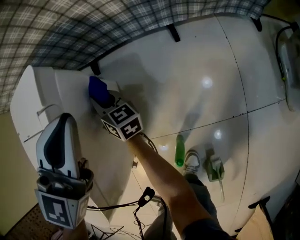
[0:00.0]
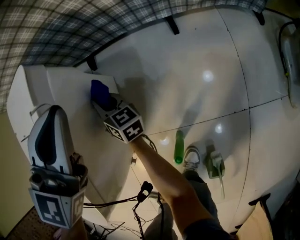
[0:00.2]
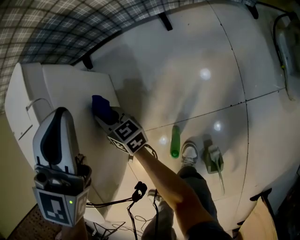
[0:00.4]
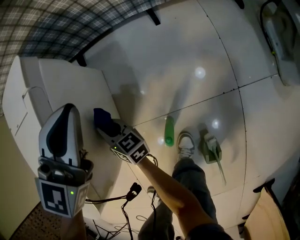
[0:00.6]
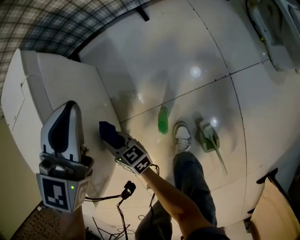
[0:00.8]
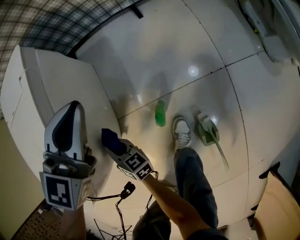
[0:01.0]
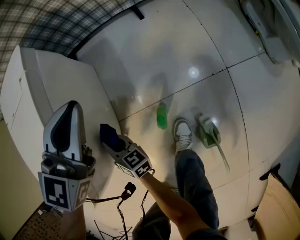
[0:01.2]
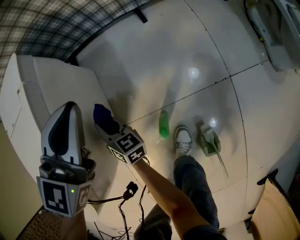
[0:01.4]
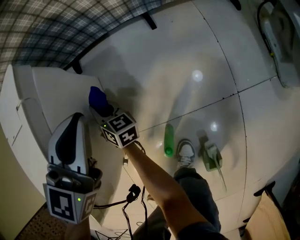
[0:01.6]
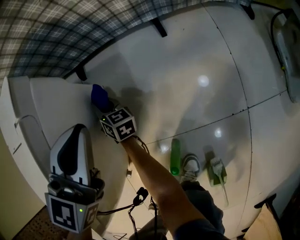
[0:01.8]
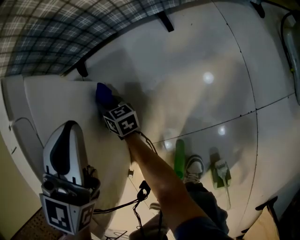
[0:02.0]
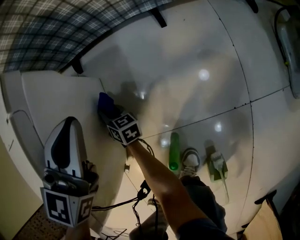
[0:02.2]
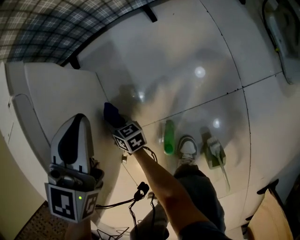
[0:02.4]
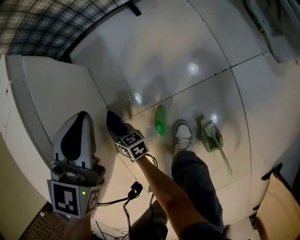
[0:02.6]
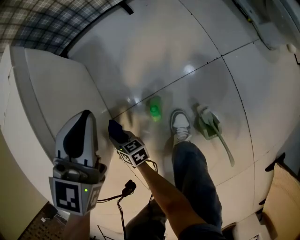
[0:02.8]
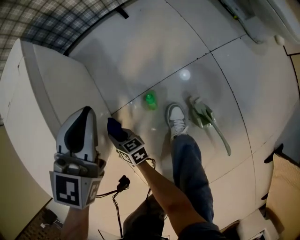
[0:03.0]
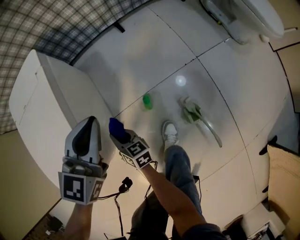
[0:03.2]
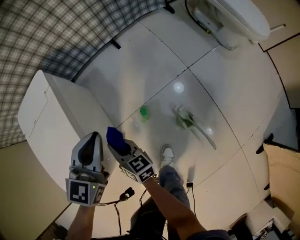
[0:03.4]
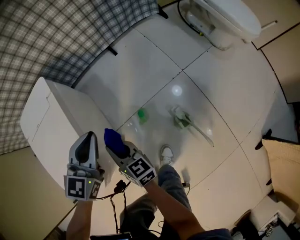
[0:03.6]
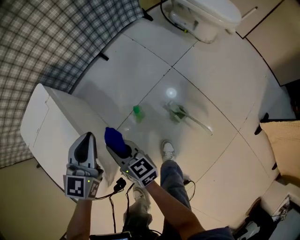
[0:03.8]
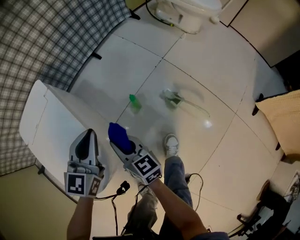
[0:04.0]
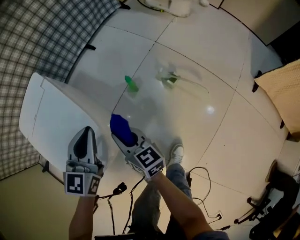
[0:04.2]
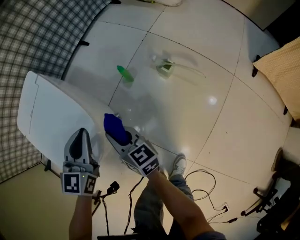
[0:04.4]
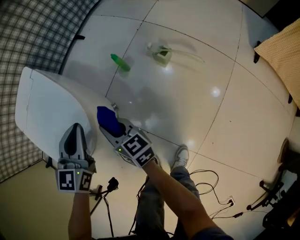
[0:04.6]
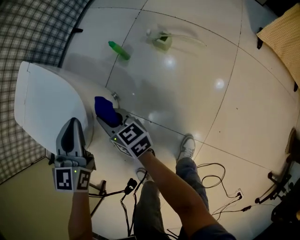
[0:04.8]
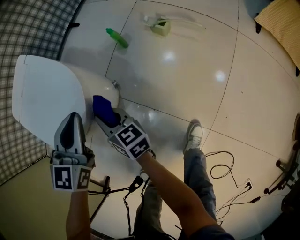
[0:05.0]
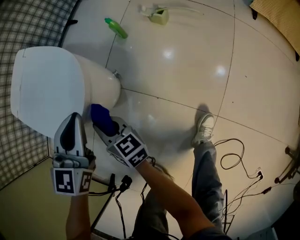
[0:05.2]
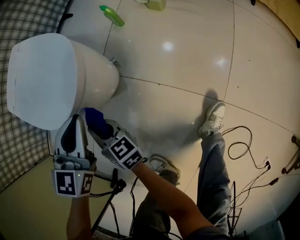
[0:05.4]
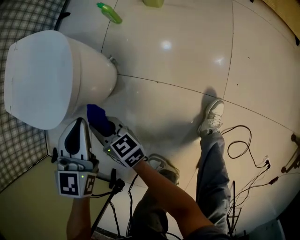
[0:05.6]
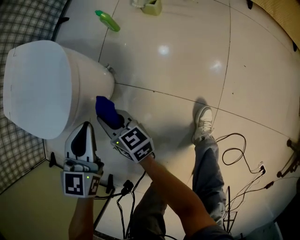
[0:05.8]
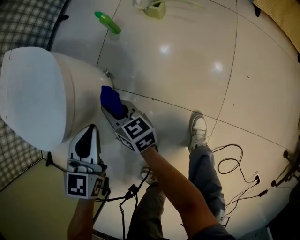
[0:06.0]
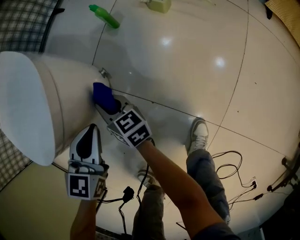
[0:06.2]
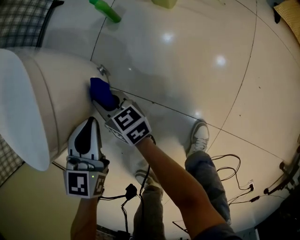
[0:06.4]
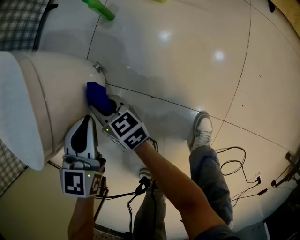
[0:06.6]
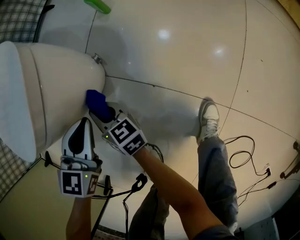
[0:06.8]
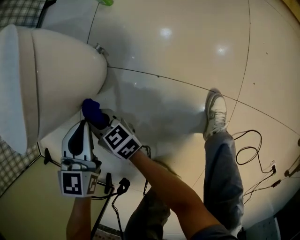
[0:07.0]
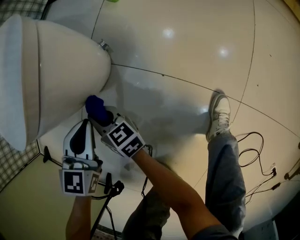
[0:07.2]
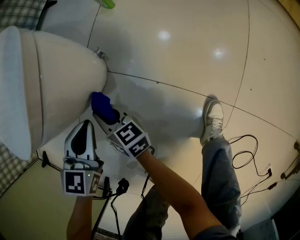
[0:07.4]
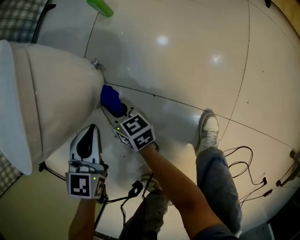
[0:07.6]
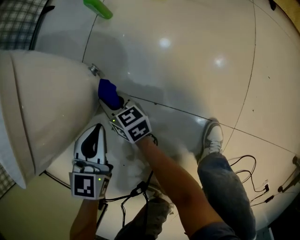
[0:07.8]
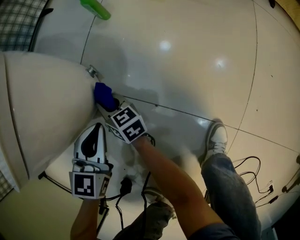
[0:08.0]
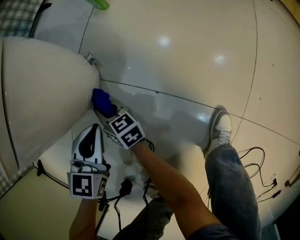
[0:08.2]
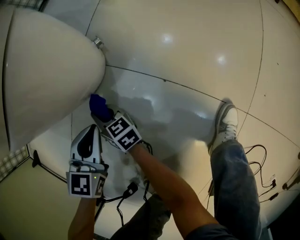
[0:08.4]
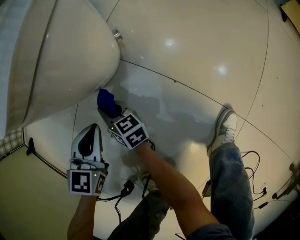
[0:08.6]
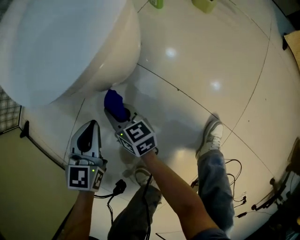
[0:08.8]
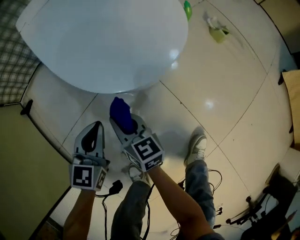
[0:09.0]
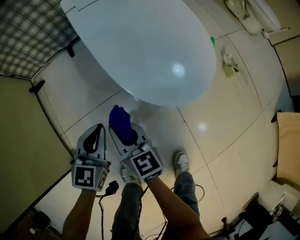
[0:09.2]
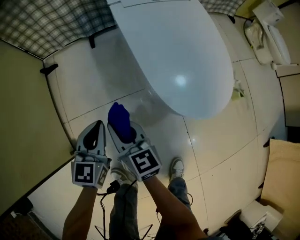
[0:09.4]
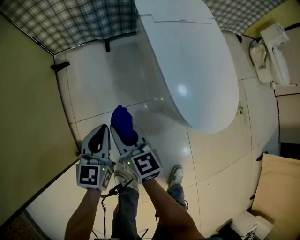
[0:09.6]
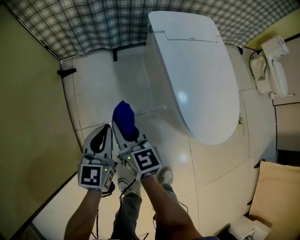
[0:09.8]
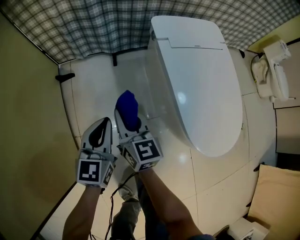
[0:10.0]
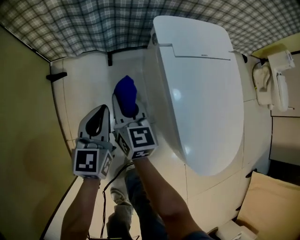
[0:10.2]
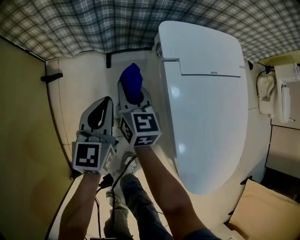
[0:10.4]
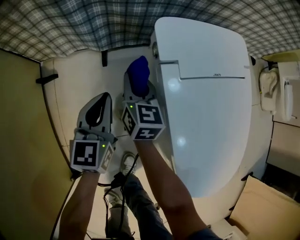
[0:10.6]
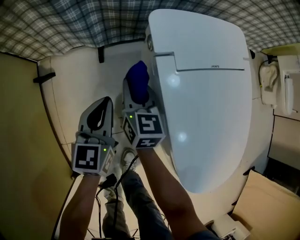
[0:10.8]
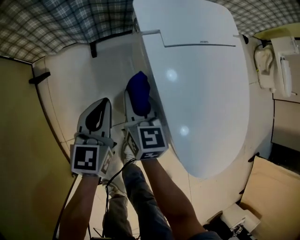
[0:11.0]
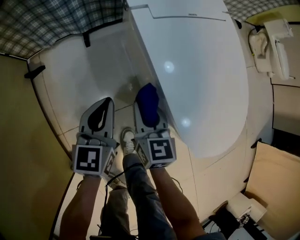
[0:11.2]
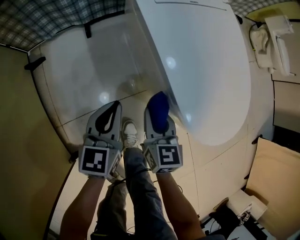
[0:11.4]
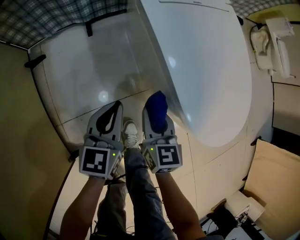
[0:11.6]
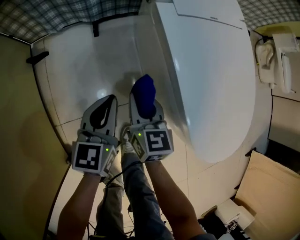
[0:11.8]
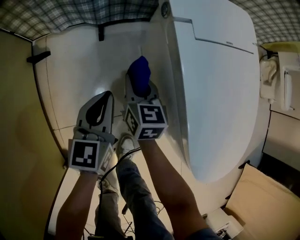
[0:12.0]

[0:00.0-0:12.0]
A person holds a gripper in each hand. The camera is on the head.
0.0 to 1.6 s: The right gripper travels downward by about 5 cm, and moves approximately 35 cm backward and comes back. Meanwhile the left gripper moves backward and downward, approximately 10 cm.
1.6 to 3.0 s: The left gripper moves backward, about 20 cm. The right gripper moves backward, approximately 30 cm.
3.0 to 4.4 s: The right gripper travels upward by approximately 30 cm, and turns by approximately 40 degrees. Meanwhile the left gripper ends up some 30 cm from where it was.
4.4 to 6.0 s: The left gripper travels backward and downward by roughly 25 cm, and changes its angle by about 20 degrees, while the right gripper shifts some 20 cm downward and backward, and goes to the left and returns, roughly 20 cm each way.
6.0 to 7.6 s: The two grippers go roughly 15 cm downward.
7.6 to 9.0 s: The left gripper is displaced to the left and upward by roughly 20 cm, and rotates roughly 30 degrees. Meanwhile the right gripper shifts some 25 cm upward, to the left and backward, and rotates approximately 30 degrees.
9.0 to 10.4 s: Both grippers are carried forward and to the left, approximately 50 cm. The left gripper rotates roughly 40 degrees.
10.4 to 12.0 s: The right gripper moves forward and backward over about 30 cm, changing direction 2 times, while the left gripper goes about 5 cm downward, and reaches about 15 cm backward, then returns.

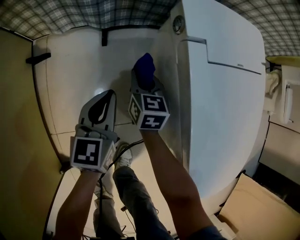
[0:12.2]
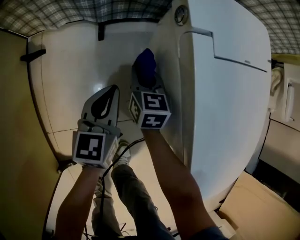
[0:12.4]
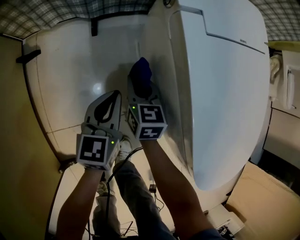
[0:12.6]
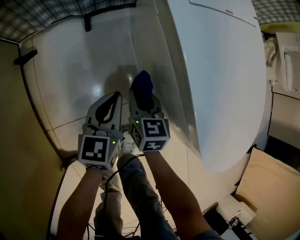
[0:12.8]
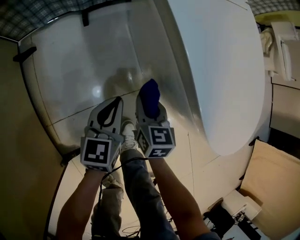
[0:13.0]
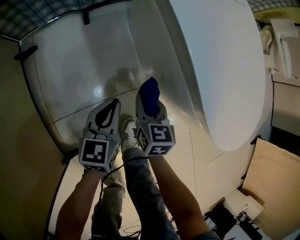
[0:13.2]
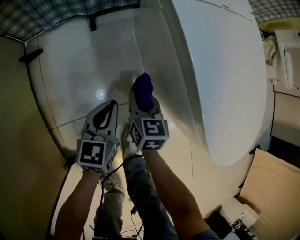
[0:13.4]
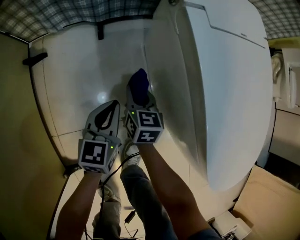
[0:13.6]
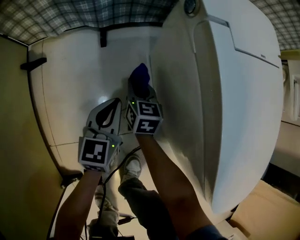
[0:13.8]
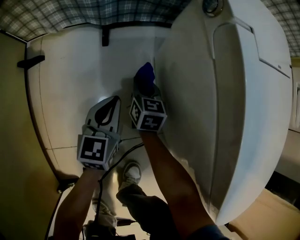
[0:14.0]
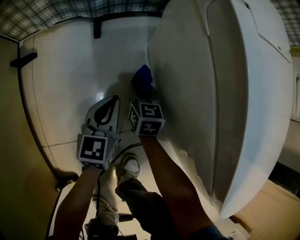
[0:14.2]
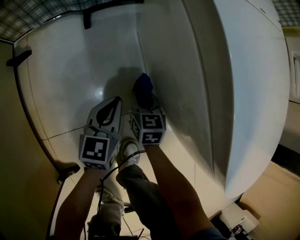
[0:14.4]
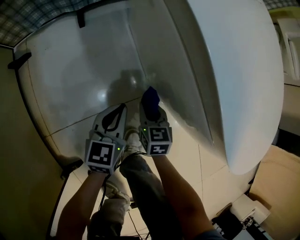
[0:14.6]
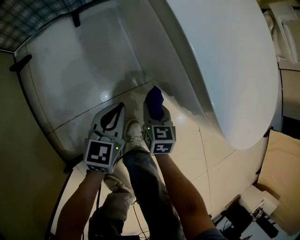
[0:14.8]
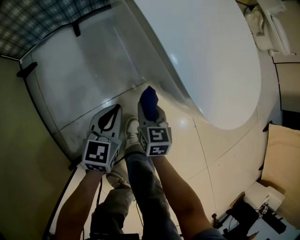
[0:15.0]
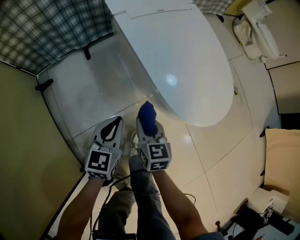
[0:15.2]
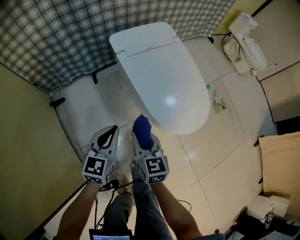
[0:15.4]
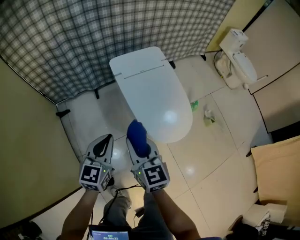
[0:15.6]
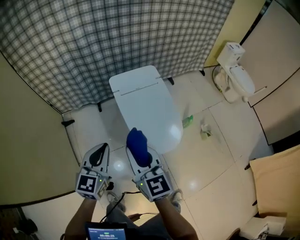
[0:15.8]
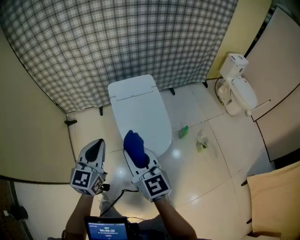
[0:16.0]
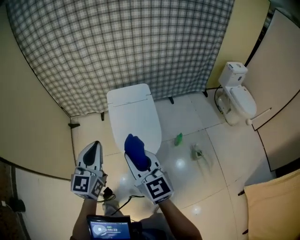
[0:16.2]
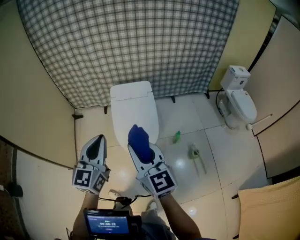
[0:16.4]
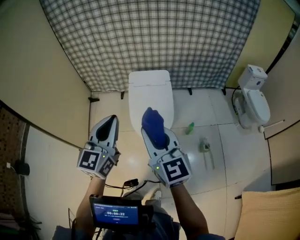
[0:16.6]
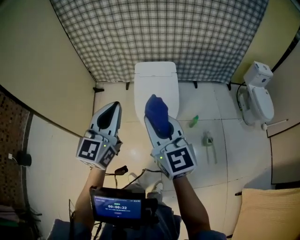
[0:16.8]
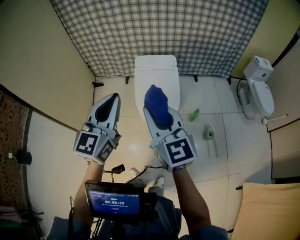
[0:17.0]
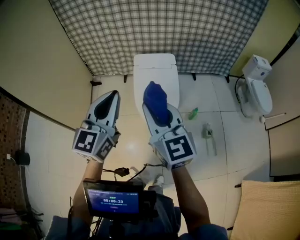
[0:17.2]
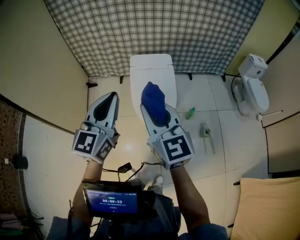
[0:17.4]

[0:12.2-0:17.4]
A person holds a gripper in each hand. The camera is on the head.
12.2 to 14.0 s: Both grippers move downward, roughly 15 cm. The left gripper moves some 20 cm backward and comes back. Meanwhile the right gripper moves roughly 25 cm backward and comes back.
14.0 to 15.6 s: Both grippers travel together upward and backward, roughly 60 cm. The right gripper swivels about 20 degrees. The left gripper swivels roughly 20 degrees.
15.6 to 17.4 s: The right gripper shifts by roughly 40 cm, and turns by some 30 degrees. The left gripper is displaced upward by roughly 35 cm, and changes its angle by approximately 30 degrees.

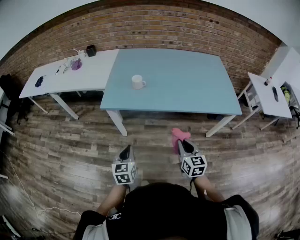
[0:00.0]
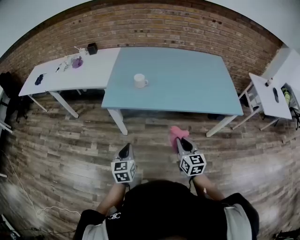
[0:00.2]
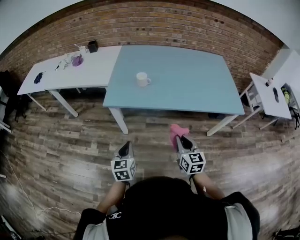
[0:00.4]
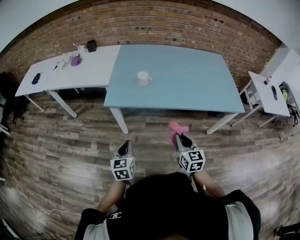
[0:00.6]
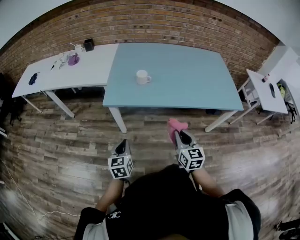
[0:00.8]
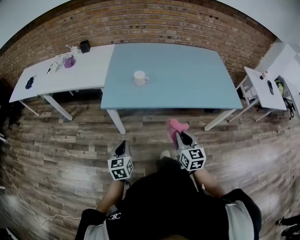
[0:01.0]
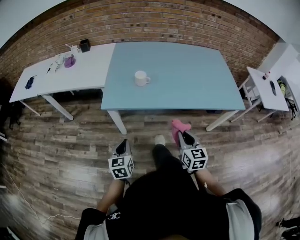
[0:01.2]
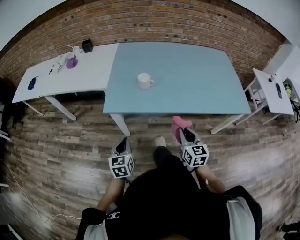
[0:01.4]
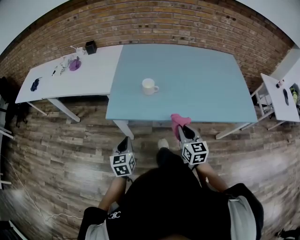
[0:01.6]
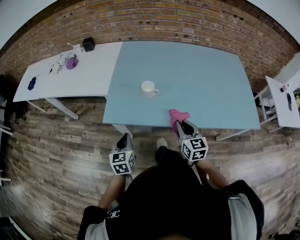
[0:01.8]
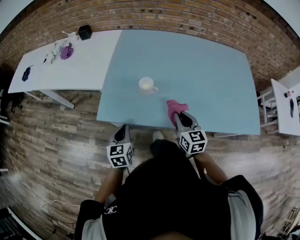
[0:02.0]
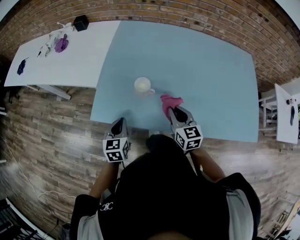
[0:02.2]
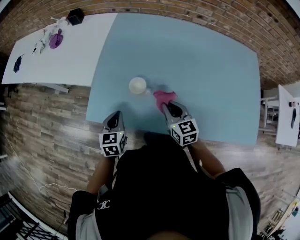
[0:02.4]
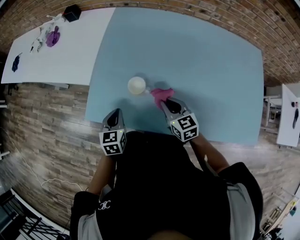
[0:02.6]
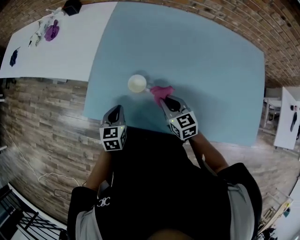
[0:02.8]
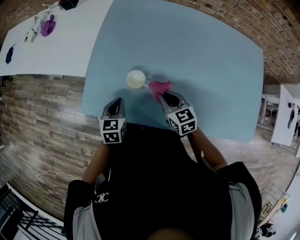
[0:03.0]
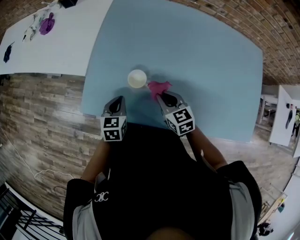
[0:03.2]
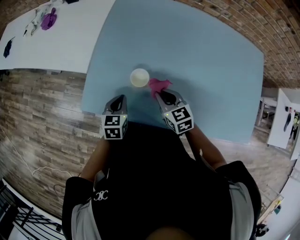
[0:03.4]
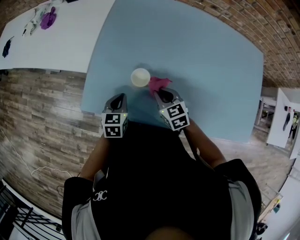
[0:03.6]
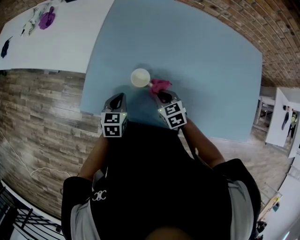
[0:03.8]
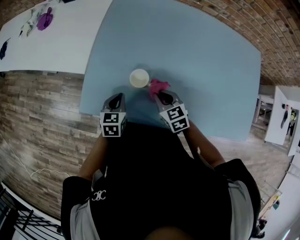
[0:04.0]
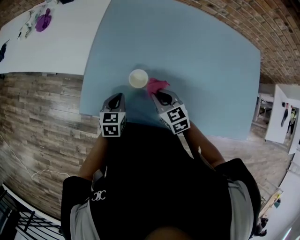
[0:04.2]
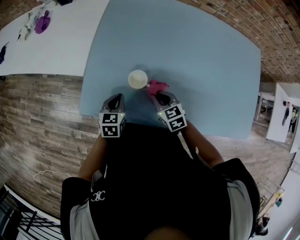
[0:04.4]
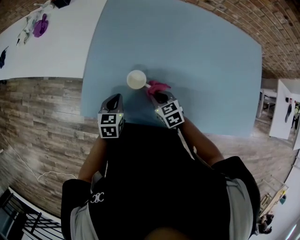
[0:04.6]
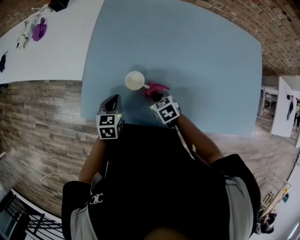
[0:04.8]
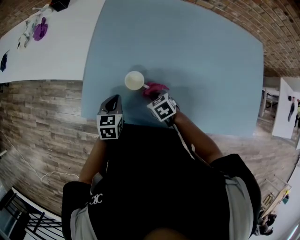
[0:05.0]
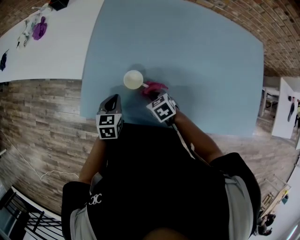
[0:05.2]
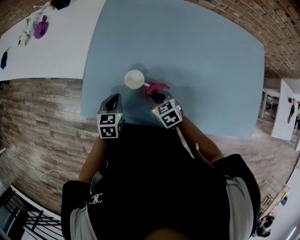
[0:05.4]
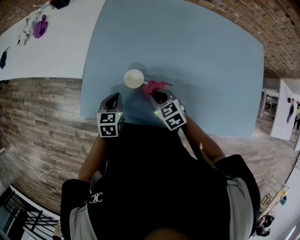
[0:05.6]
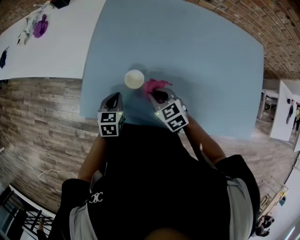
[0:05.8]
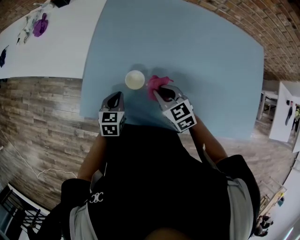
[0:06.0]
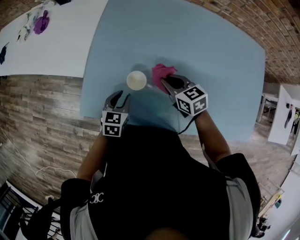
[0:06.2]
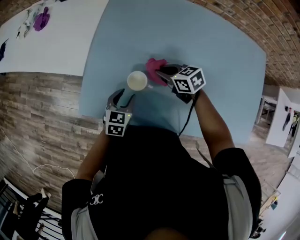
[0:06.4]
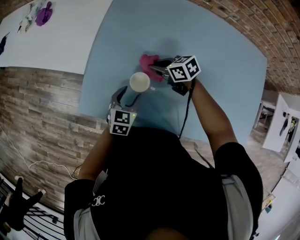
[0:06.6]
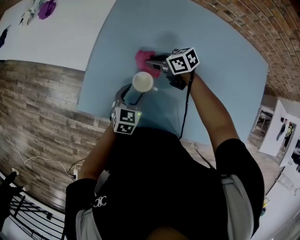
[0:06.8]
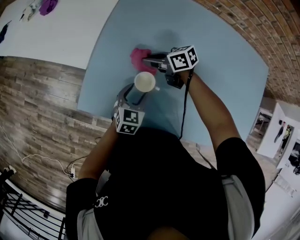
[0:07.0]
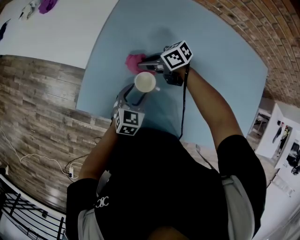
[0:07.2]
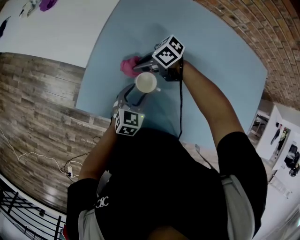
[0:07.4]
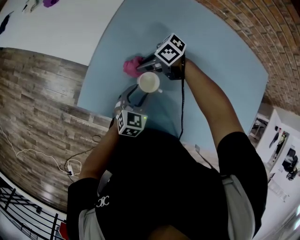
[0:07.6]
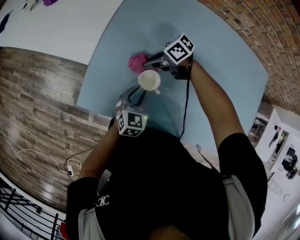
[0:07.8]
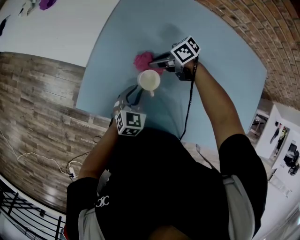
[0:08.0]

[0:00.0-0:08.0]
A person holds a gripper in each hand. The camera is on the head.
0.0 to 1.6 s: Both grippers move forward and to the left, about 20 cm.
1.6 to 3.2 s: The left gripper moves forward and to the right, about 25 cm. Meanwhile the right gripper moves forward, roughly 25 cm, and rotates approximately 30 degrees.
3.2 to 4.8 s: The right gripper swings up and down, about 10 cm each way, with 2 reversals, and changes its angle by about 20 degrees.
4.8 to 6.4 s: The left gripper opens its fingers. The right gripper is displaced forward and upward by some 15 cm.
6.4 to 8.0 s: The left gripper closes its fingers. The right gripper changes its angle by approximately 40 degrees.
